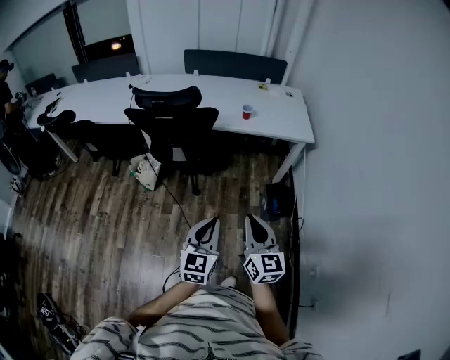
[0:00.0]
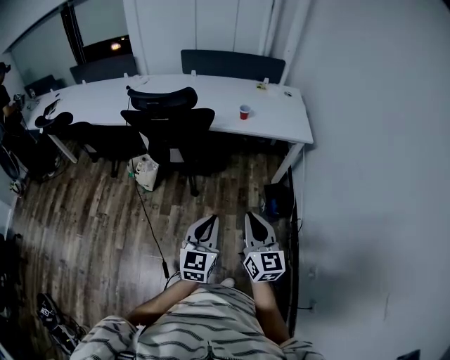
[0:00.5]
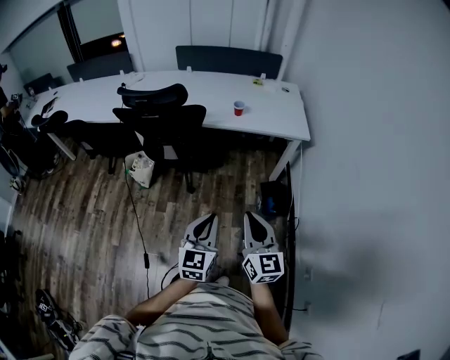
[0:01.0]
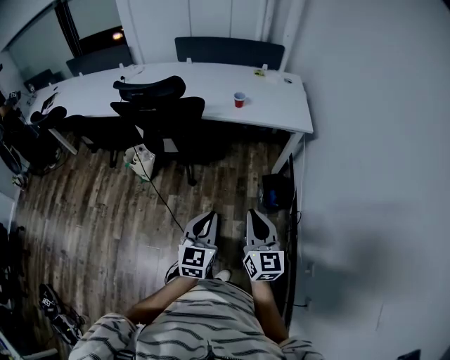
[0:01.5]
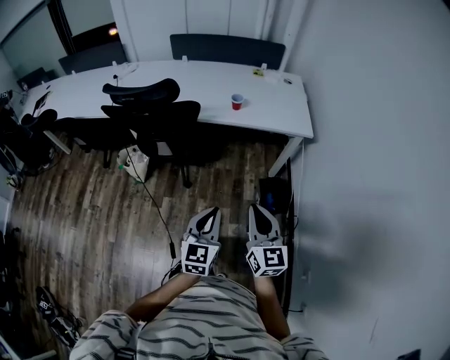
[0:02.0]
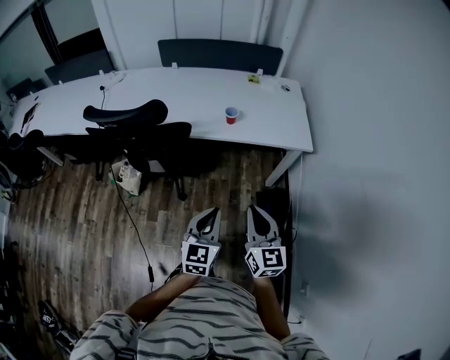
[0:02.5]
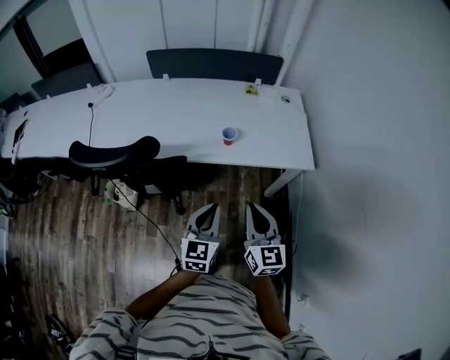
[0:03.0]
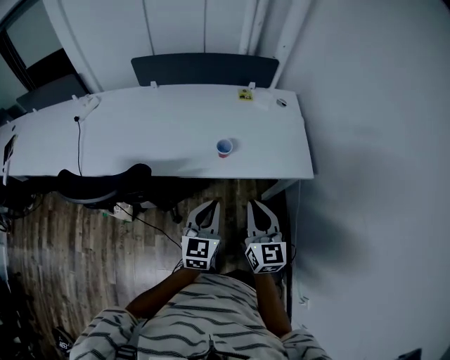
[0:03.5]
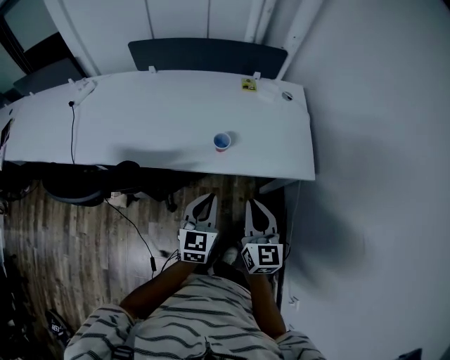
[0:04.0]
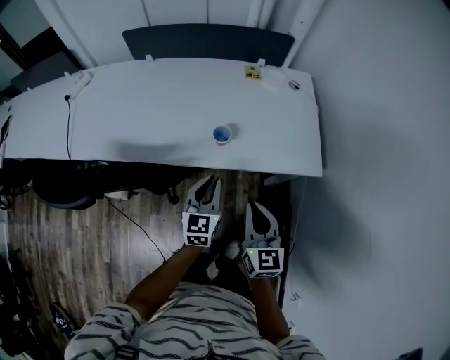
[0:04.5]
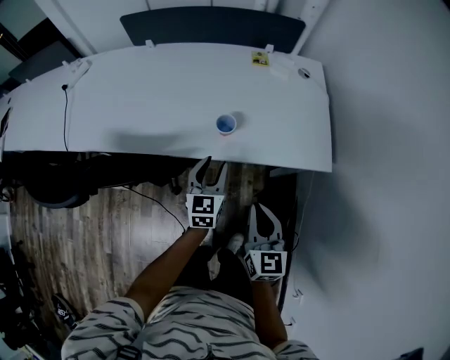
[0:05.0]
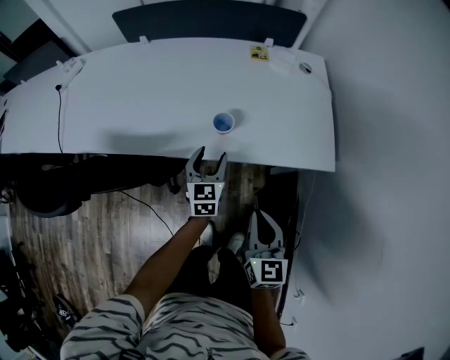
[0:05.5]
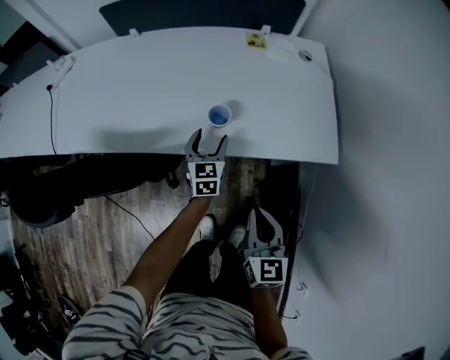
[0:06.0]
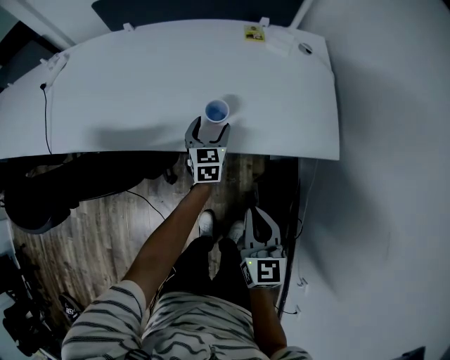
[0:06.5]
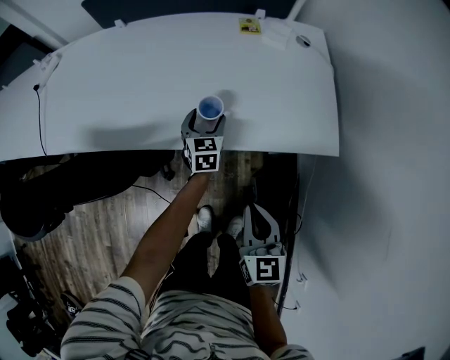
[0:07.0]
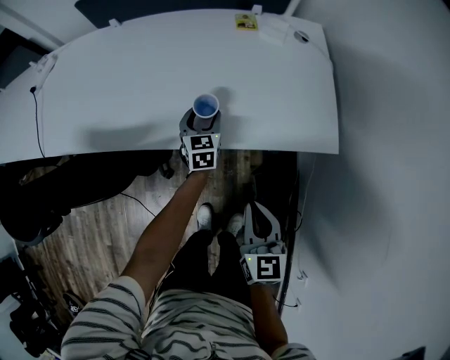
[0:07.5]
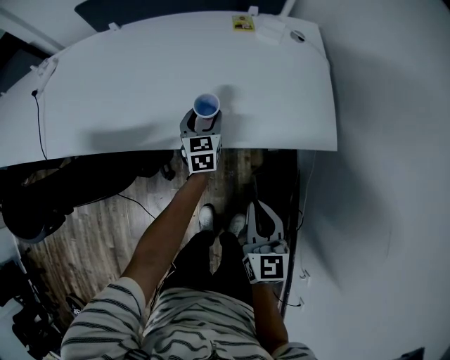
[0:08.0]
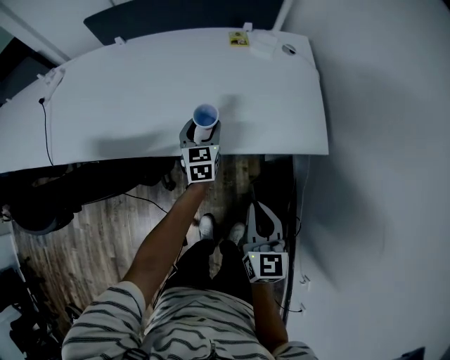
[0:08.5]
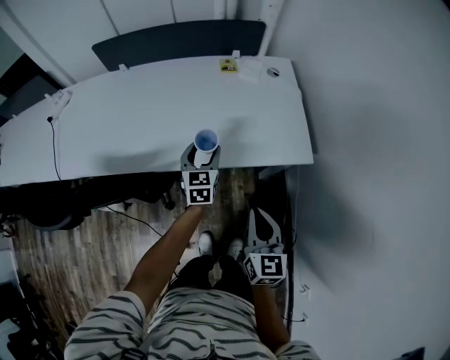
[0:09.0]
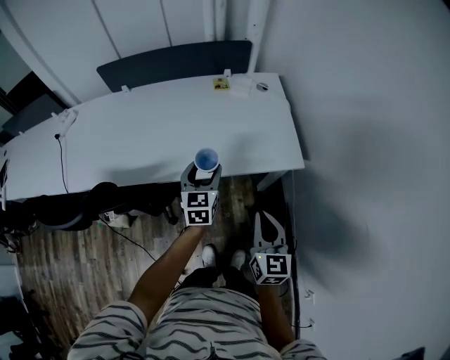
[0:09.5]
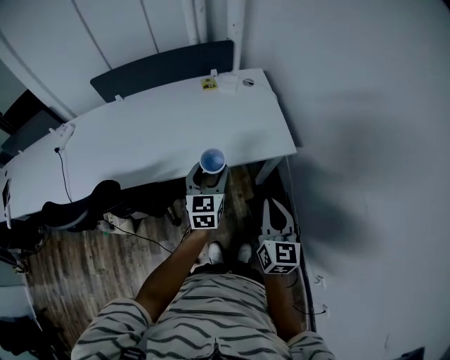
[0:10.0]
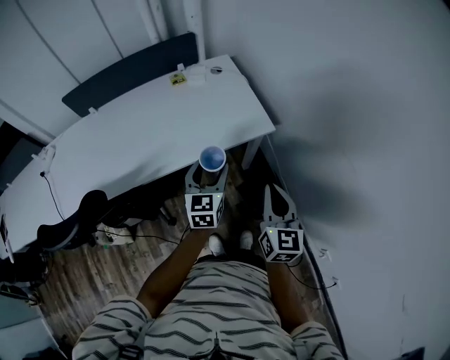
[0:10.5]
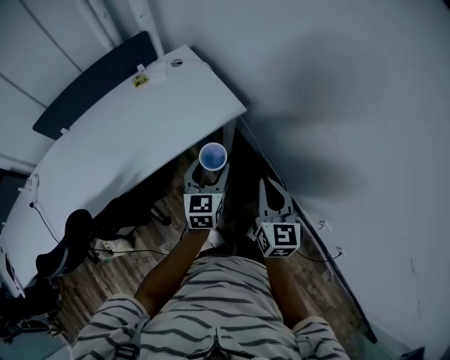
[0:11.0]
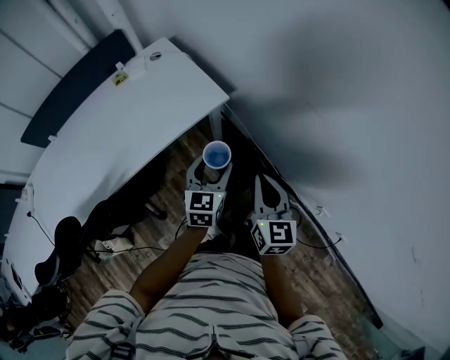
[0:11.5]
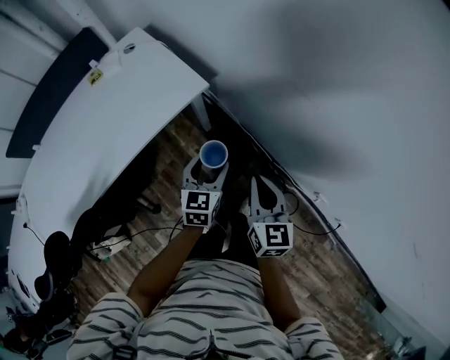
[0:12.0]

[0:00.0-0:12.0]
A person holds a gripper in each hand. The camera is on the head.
0:00.0 to 0:02.0: The two grippers go approximately 15 cm forward and to the right.
0:02.0 to 0:04.0: Both grippers move forward, roughly 40 cm.
0:04.0 to 0:06.0: The left gripper goes some 25 cm forward and downward, and opens up, while the right gripper heads downward, covering approximately 10 cm.
0:06.0 to 0:08.0: The left gripper goes about 5 cm forward.
0:08.0 to 0:10.0: The right gripper travels upward, backward and to the right by roughly 15 cm. The left gripper is displaced upward and backward by roughly 30 cm.
0:10.0 to 0:12.0: The right gripper changes place by approximately 20 cm, and rotates roughly 30 degrees; the left gripper moves some 30 cm, and changes its angle by roughly 40 degrees.

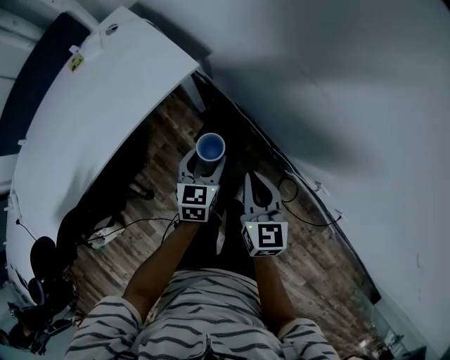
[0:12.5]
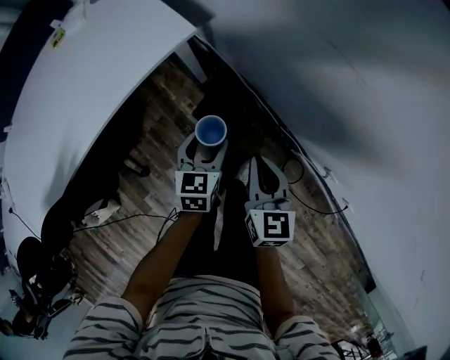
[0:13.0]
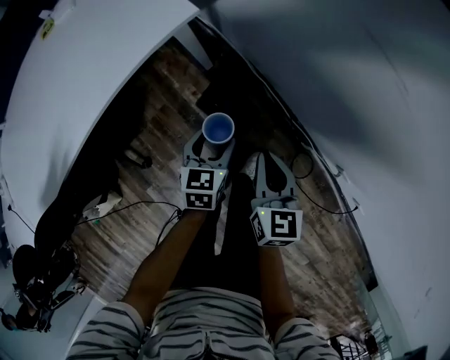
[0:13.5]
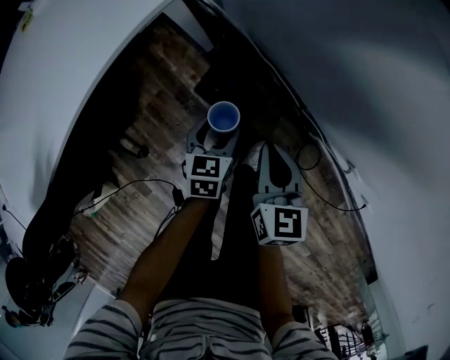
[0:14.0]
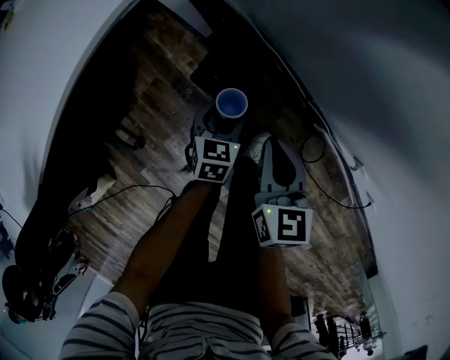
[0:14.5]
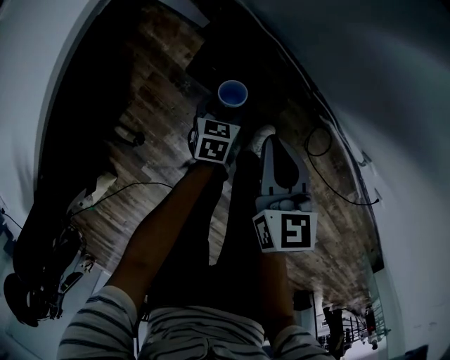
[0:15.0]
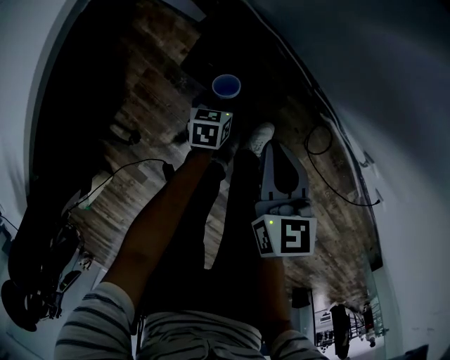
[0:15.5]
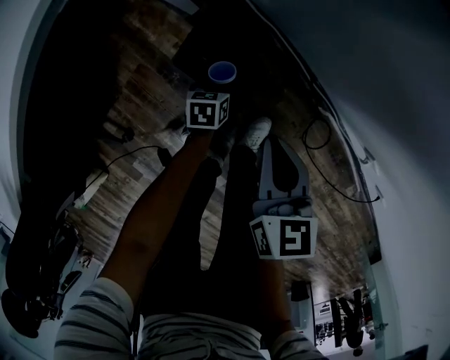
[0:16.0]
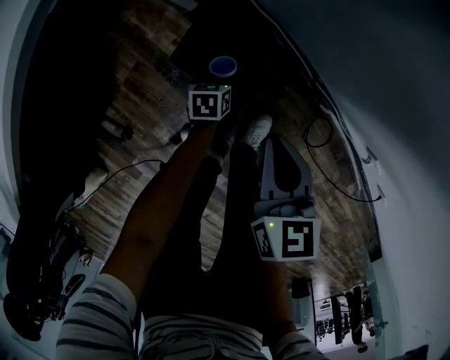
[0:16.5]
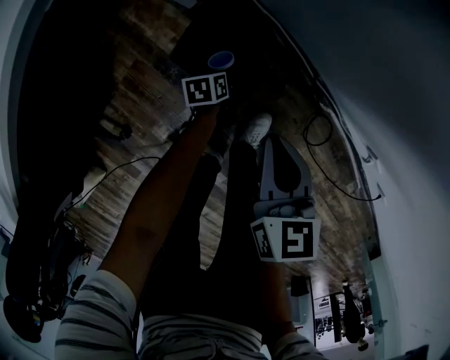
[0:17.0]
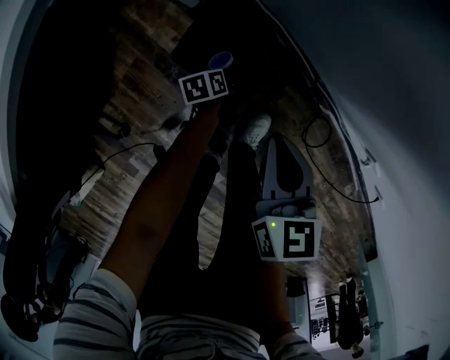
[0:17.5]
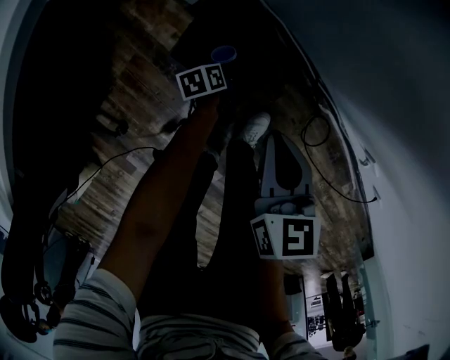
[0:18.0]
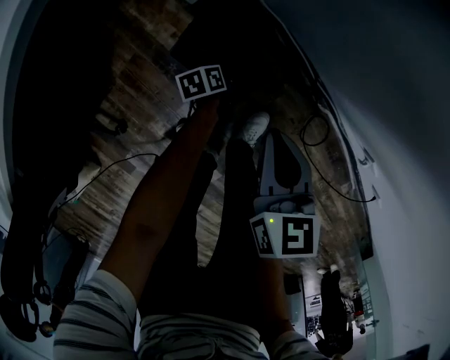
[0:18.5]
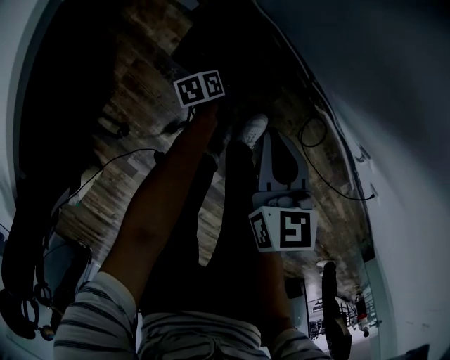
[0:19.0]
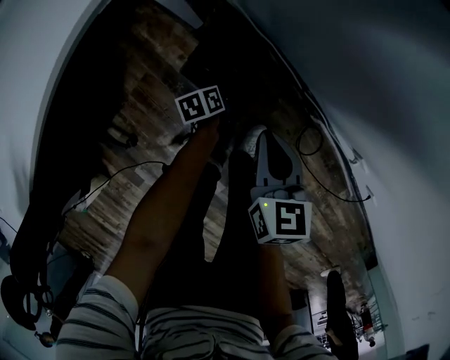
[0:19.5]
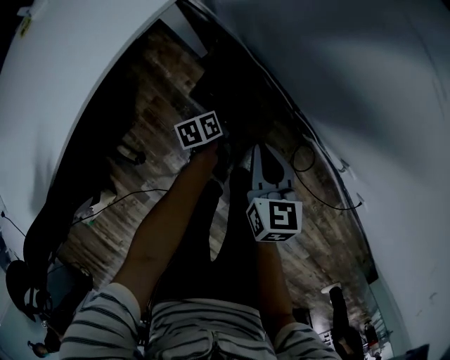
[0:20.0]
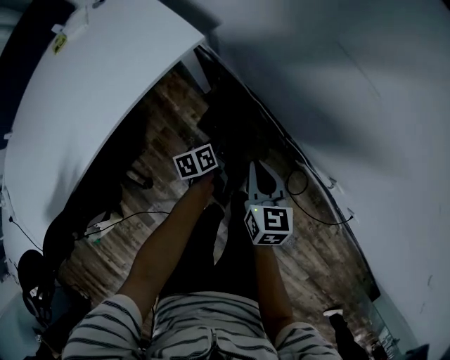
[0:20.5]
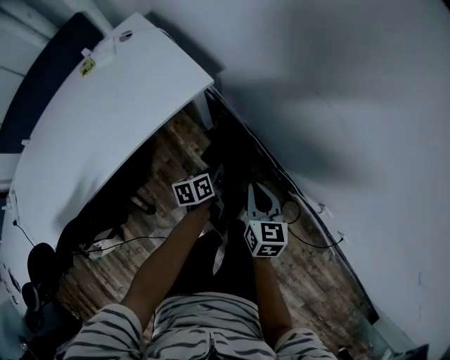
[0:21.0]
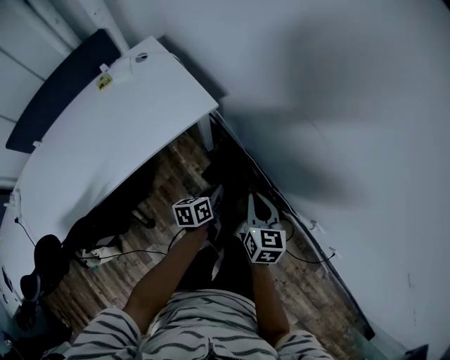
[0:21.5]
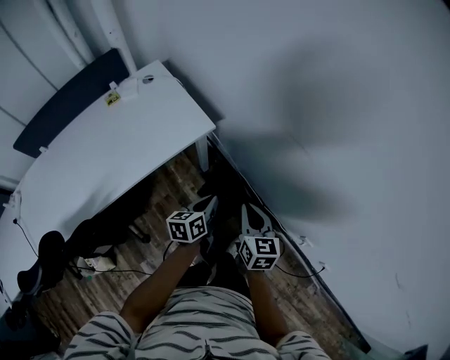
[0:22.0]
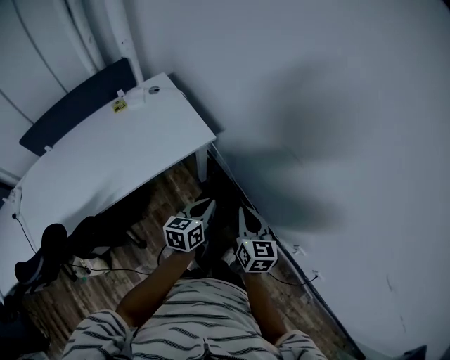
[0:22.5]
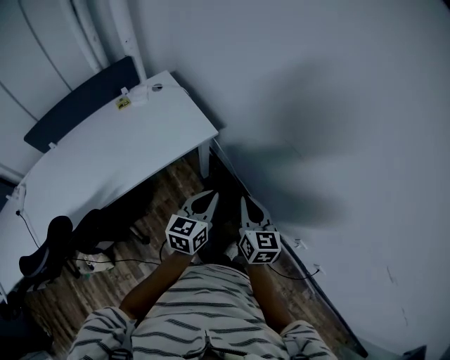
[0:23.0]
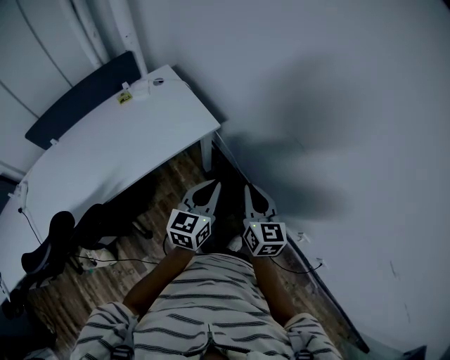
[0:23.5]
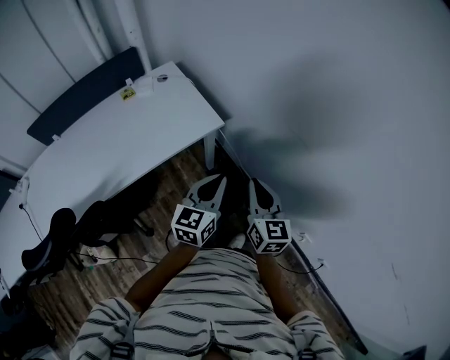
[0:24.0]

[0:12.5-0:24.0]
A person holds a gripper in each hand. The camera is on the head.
0:12.5 to 0:14.5: The grippers both shift downward by roughly 25 cm. The left gripper turns by some 20 degrees.
0:14.5 to 0:16.5: The left gripper goes about 20 cm downward, and changes its angle by roughly 20 degrees, while the right gripper heads downward, covering about 5 cm.
0:16.5 to 0:18.5: The left gripper turns by roughly 30 degrees.
0:18.5 to 0:20.0: The left gripper shifts roughly 20 cm upward, and closes; the right gripper is displaced upward by some 10 cm.
0:20.0 to 0:22.0: The left gripper travels upward by about 40 cm, and rotates approximately 30 degrees. The right gripper shifts approximately 25 cm upward.
0:22.0 to 0:24.0: The right gripper is displaced upward by roughly 10 cm. The left gripper shifts some 20 cm upward, and swivels about 30 degrees.

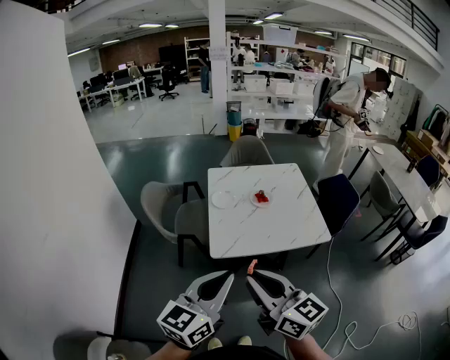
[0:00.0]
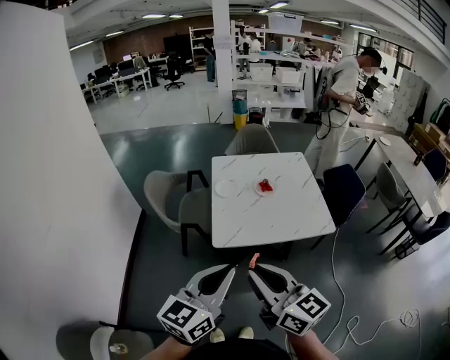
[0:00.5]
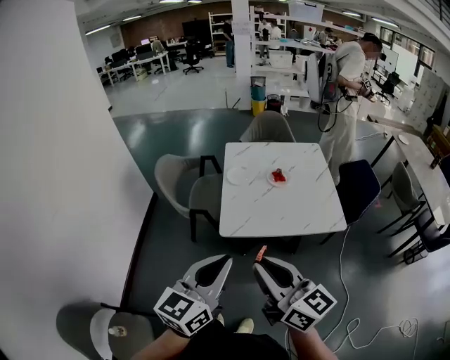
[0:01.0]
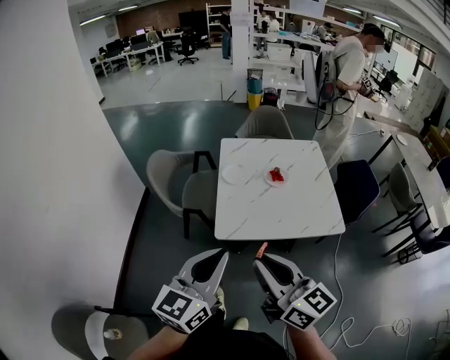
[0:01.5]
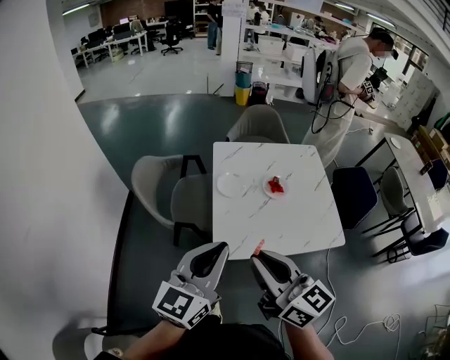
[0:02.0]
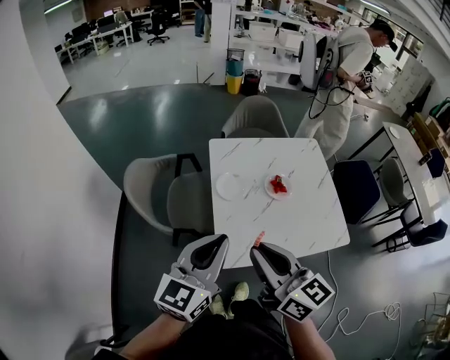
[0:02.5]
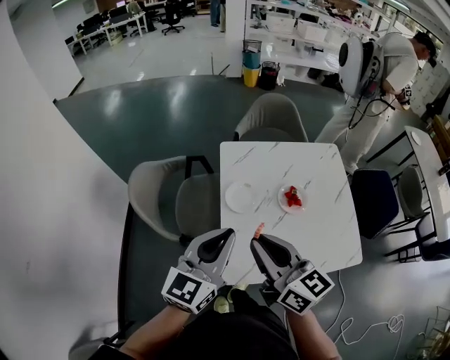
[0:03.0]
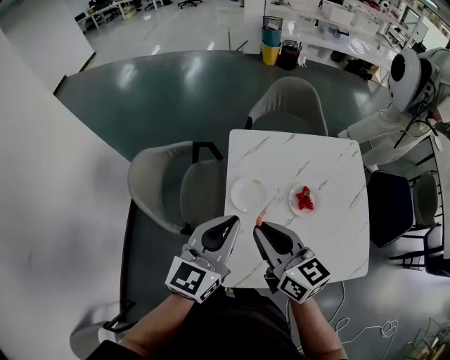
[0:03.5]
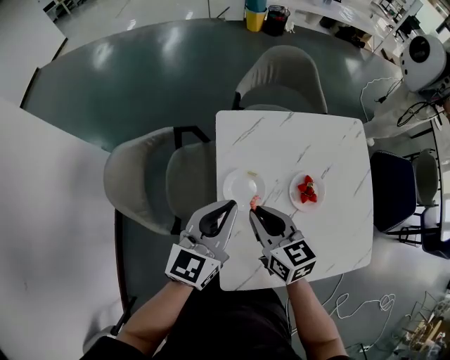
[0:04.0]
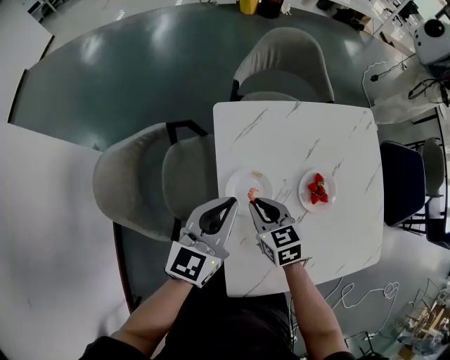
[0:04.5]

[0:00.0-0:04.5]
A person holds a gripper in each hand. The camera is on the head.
0:00.0 to 0:02.0: Both grippers move forward, roughly 20 cm.
0:02.0 to 0:04.5: The two grippers travel together, forward, roughly 40 cm. The left gripper is displaced downward by some 25 cm; the right gripper heads downward, covering roughly 35 cm, and tips its fingers downward by roughly 40 degrees.
